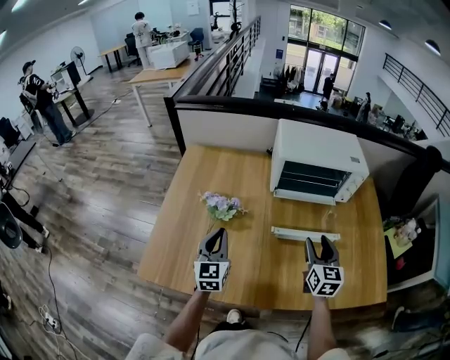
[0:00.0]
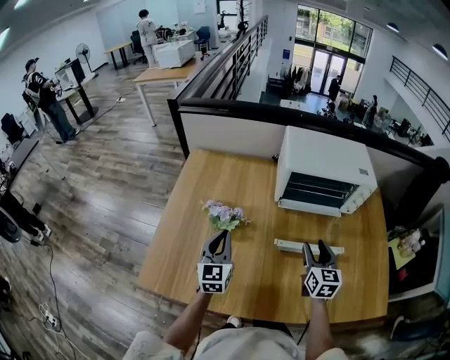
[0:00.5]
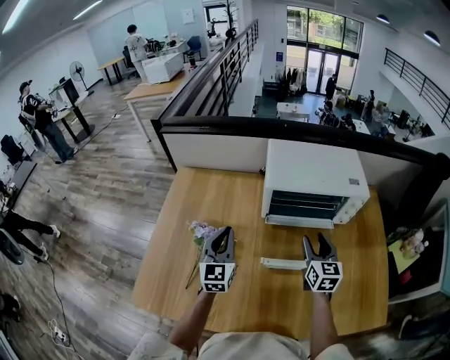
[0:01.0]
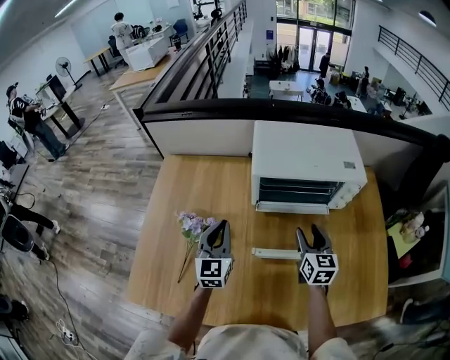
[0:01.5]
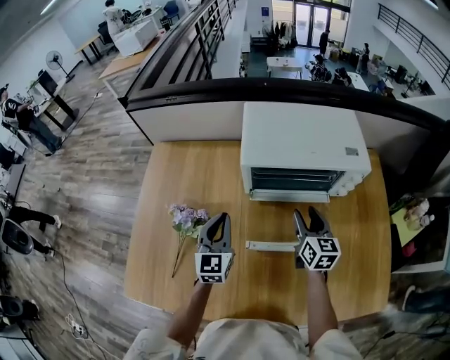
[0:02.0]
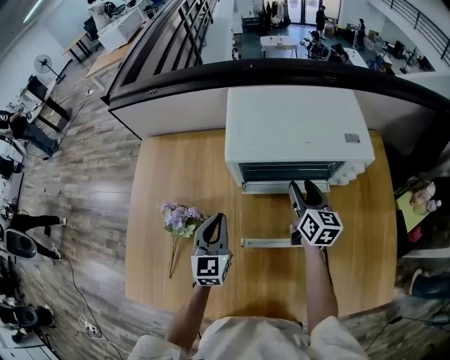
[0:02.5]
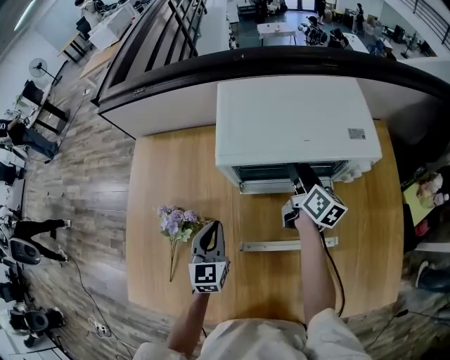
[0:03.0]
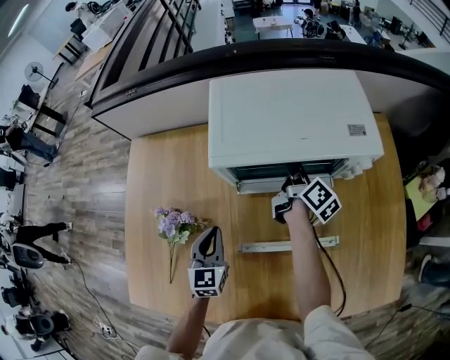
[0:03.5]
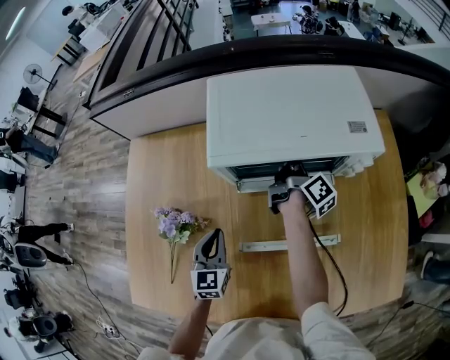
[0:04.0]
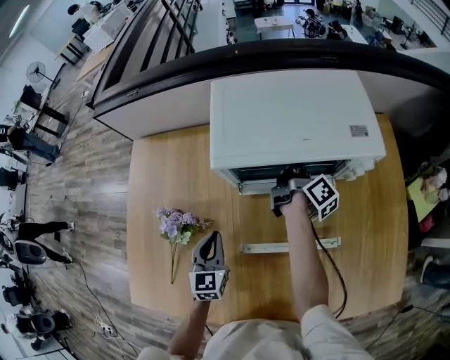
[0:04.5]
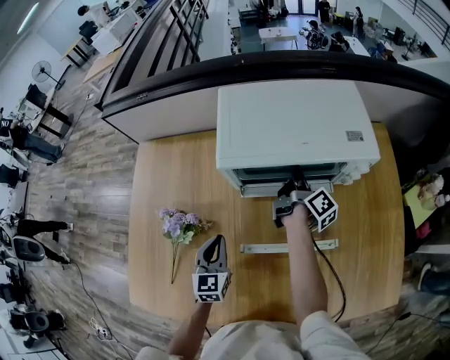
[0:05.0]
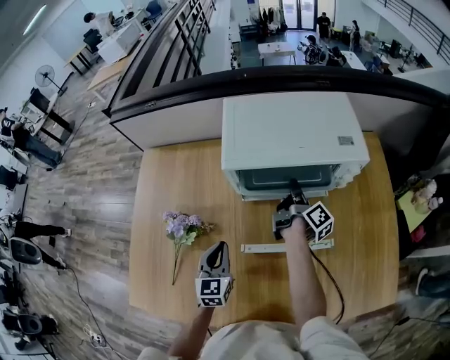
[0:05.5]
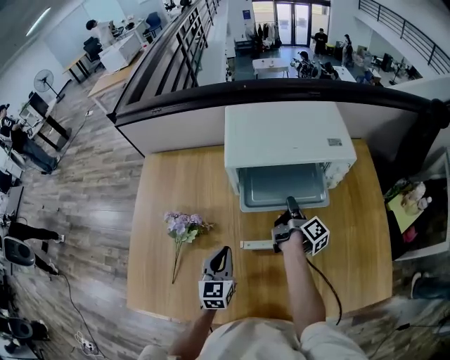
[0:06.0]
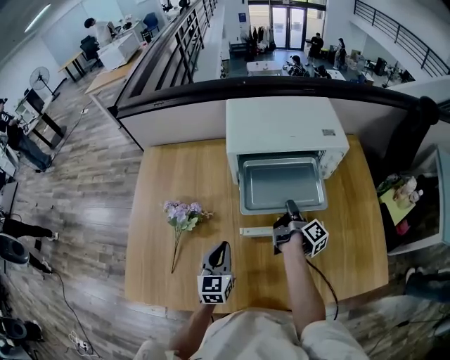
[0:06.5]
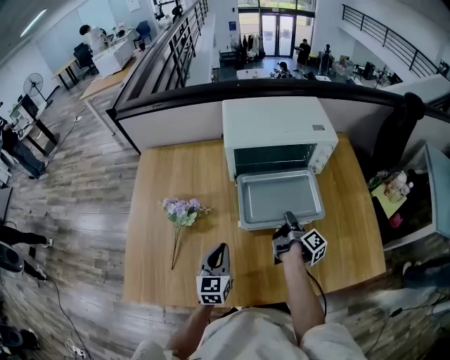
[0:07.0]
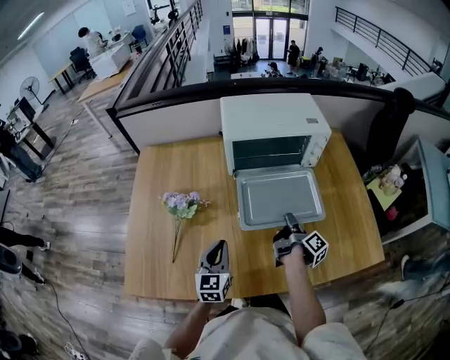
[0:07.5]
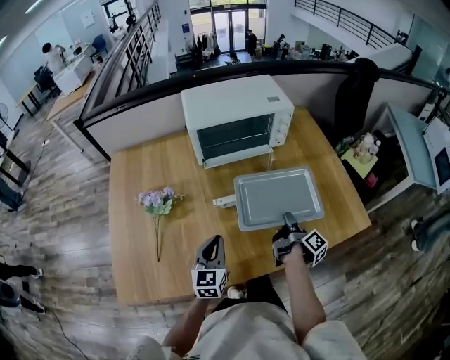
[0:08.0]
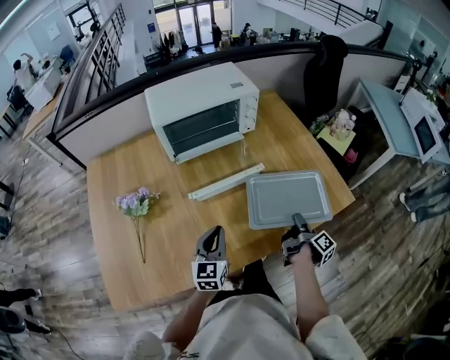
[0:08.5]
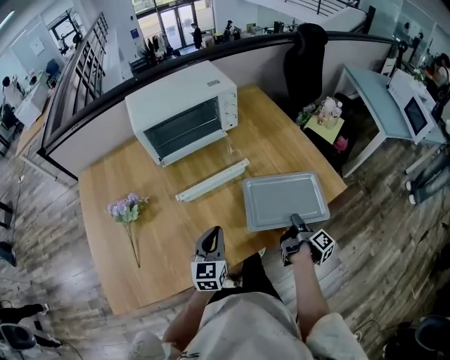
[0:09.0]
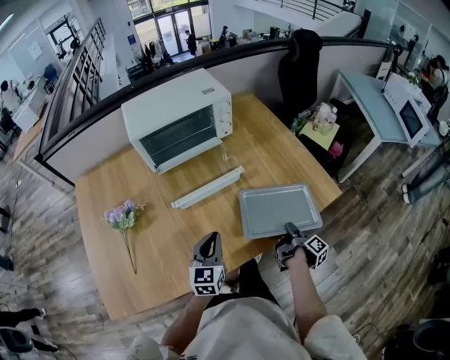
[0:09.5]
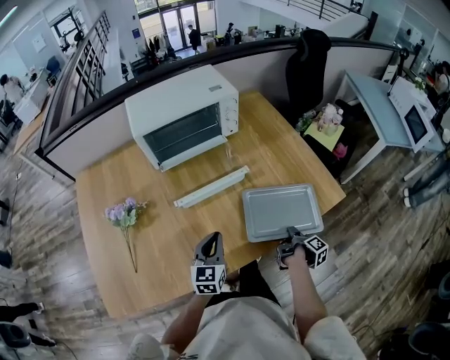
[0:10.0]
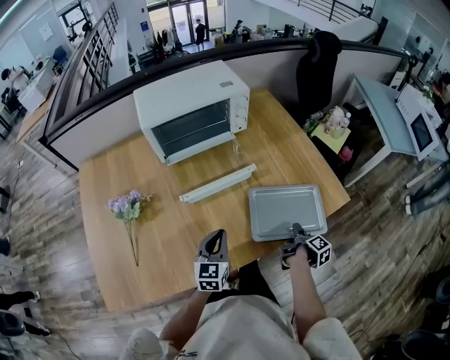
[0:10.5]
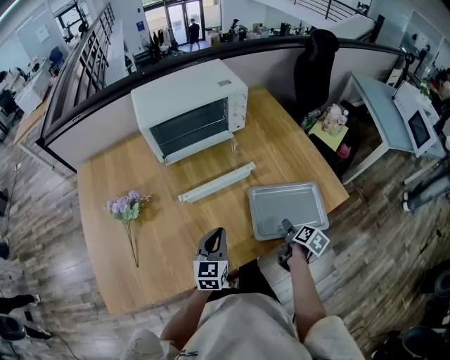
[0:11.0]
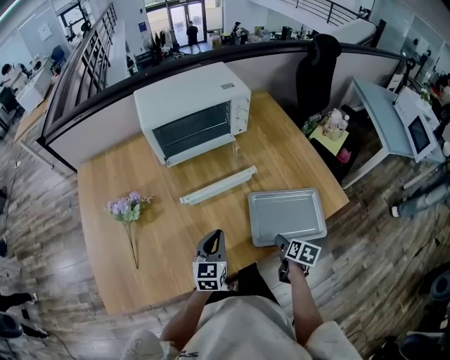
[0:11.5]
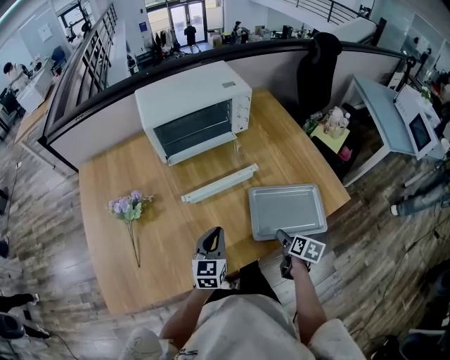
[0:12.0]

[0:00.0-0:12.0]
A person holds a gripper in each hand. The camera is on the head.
0:00.0 to 0:02.0: The left gripper goes some 20 cm forward and to the right. The right gripper heads forward, covering some 15 cm.
0:02.0 to 0:04.0: The right gripper travels forward by some 15 cm, and rotates around the line of its fingers by about 70 degrees, clockwise from behind. The left gripper moves downward, roughly 10 cm.
0:04.0 to 0:06.0: The left gripper goes about 5 cm backward. The right gripper travels backward by approximately 15 cm.
0:06.0 to 0:08.0: The left gripper goes some 10 cm backward. Meanwhile the right gripper shifts roughly 25 cm backward.
0:08.0 to 0:10.0: The right gripper travels to the right, downward and backward by some 20 cm, and rotates approximately 30 degrees; the left gripper is displaced to the right by approximately 10 cm.
0:10.0 to 0:12.0: The right gripper changes place by about 5 cm, twists approximately 60 degrees counterclockwise, seen from behind, and opens.

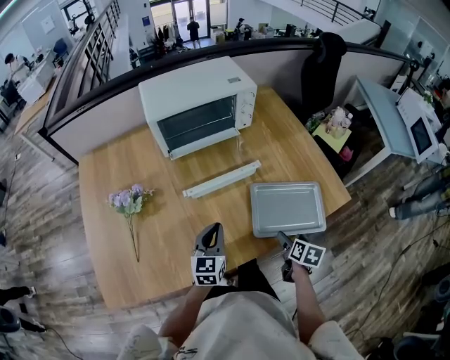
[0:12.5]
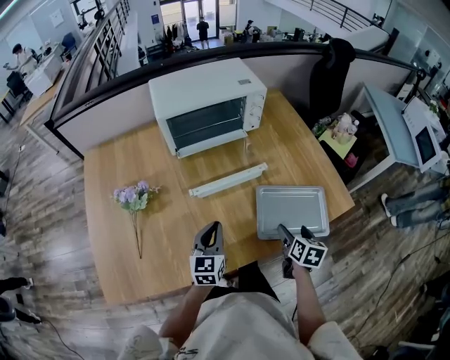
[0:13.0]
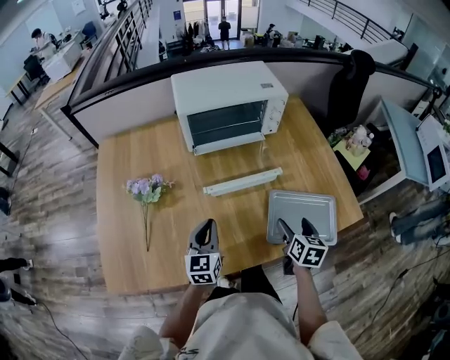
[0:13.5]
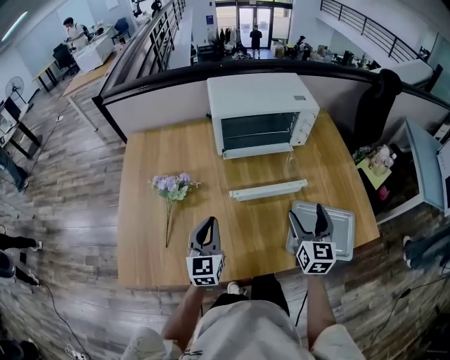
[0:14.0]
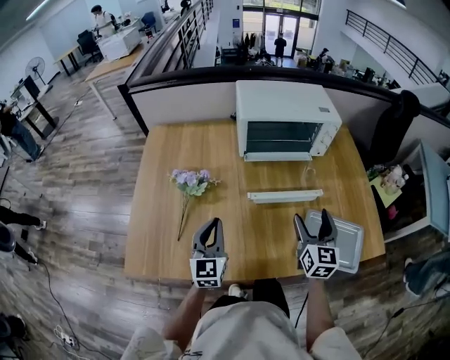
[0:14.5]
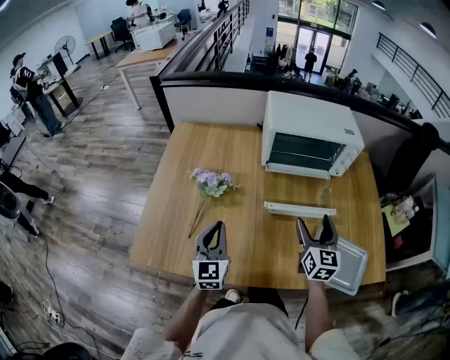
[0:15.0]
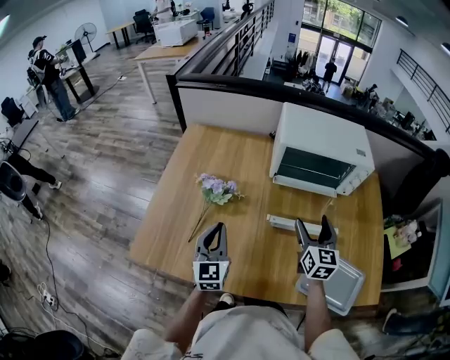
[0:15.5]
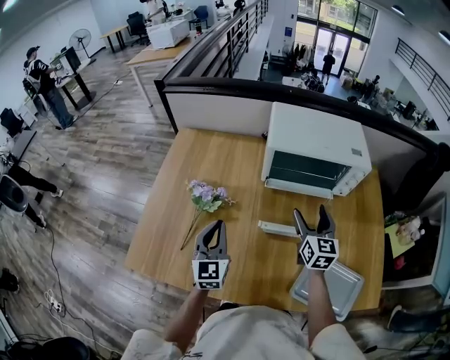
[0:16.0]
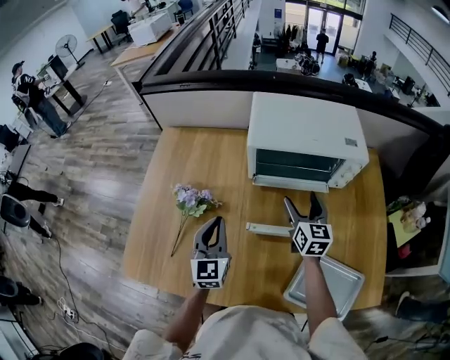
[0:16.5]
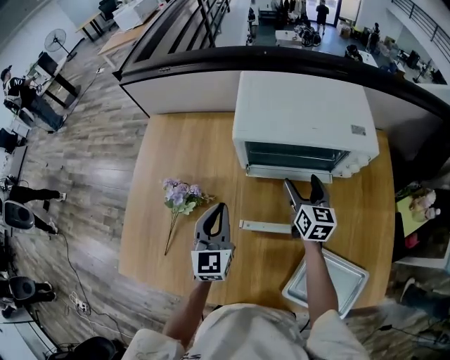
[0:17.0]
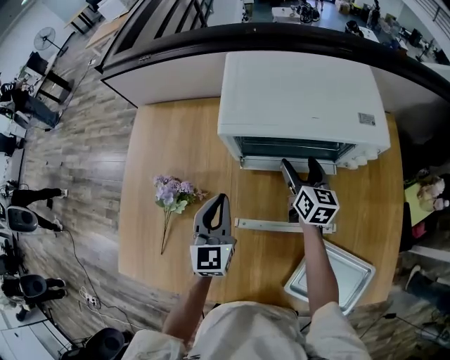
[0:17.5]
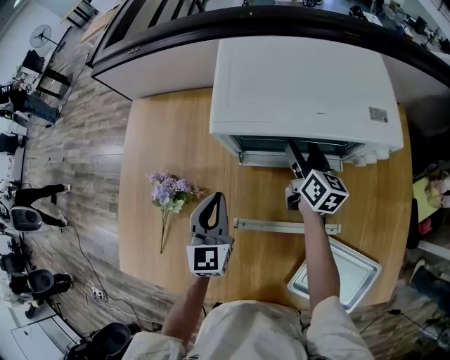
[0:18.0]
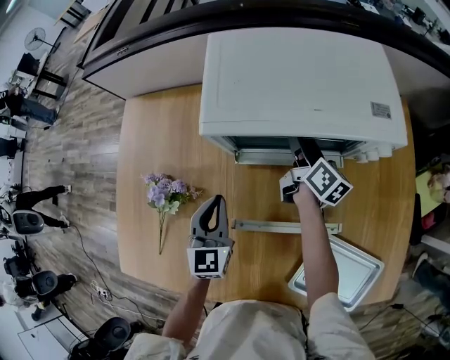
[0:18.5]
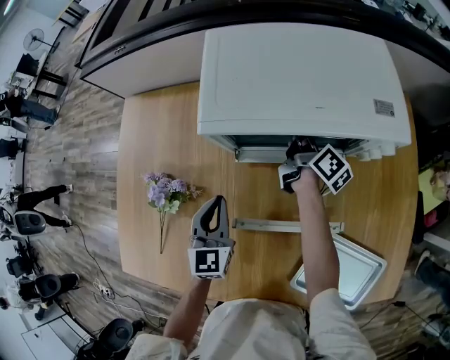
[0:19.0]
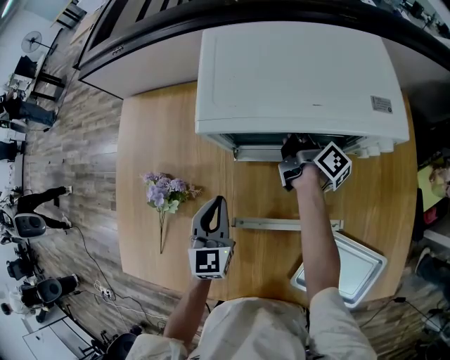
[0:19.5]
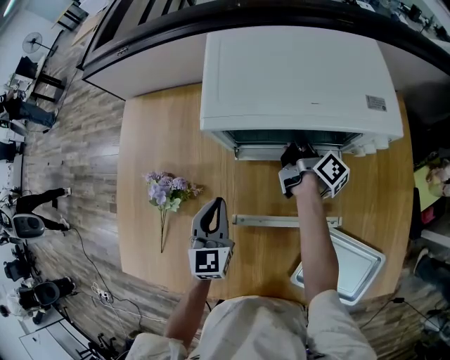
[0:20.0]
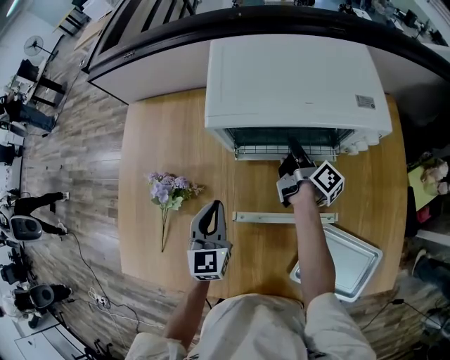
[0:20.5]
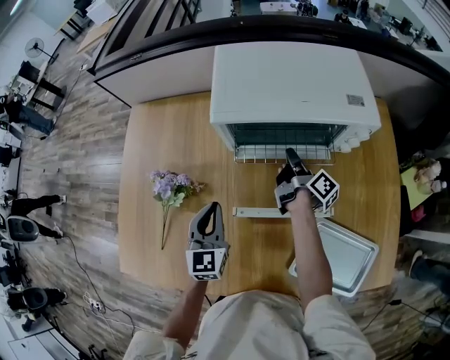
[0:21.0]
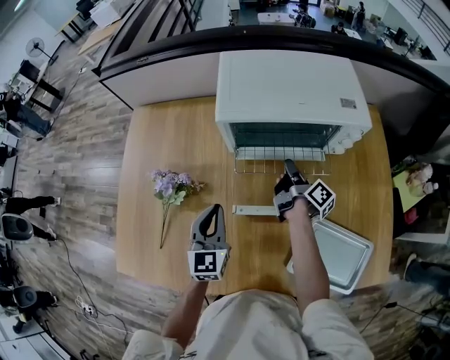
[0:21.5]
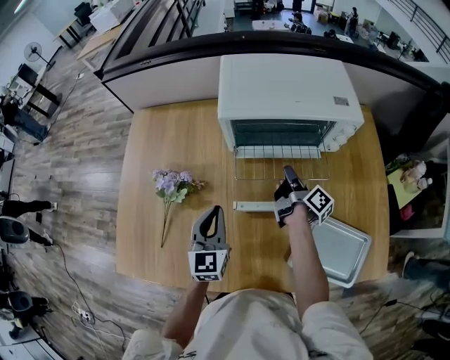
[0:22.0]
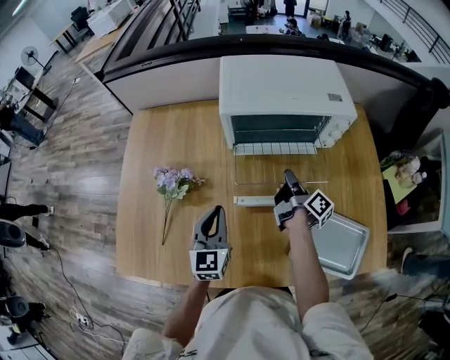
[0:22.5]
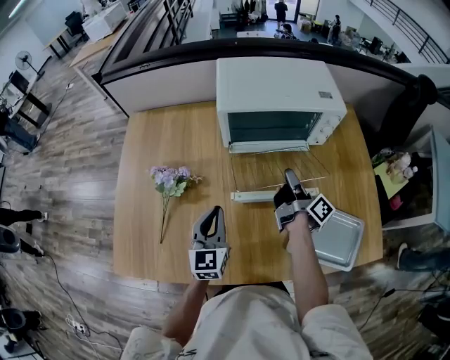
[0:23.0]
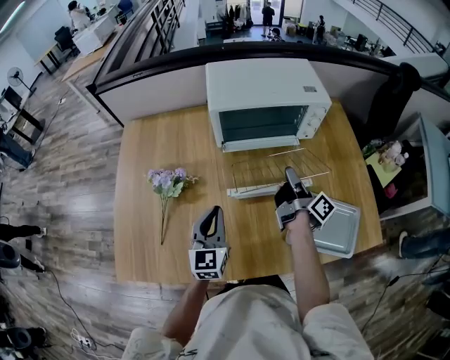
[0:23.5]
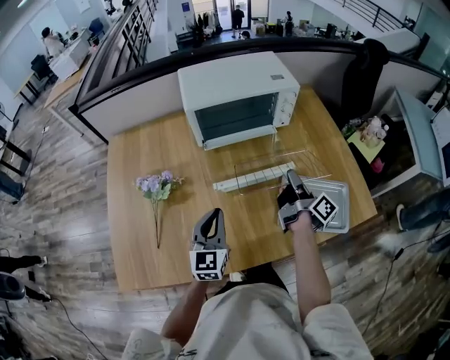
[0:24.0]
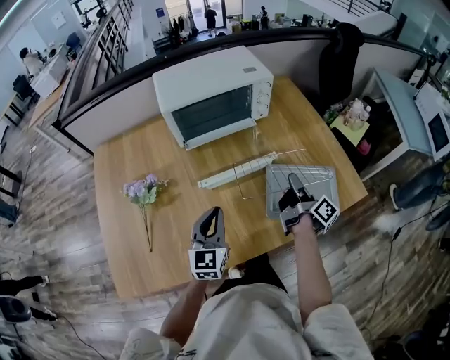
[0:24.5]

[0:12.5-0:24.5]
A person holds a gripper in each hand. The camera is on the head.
0:12.5 to 0:14.5: The left gripper travels to the left and upward by approximately 20 cm, and turns by roughly 30 degrees. The right gripper goes approximately 30 cm upward, to the left and forward, and tilts its fingers approximately 40 degrees upward.
0:14.5 to 0:16.5: The right gripper heads forward, covering approximately 20 cm, while the left gripper heads forward, covering approximately 10 cm.
0:16.5 to 0:18.5: The left gripper shifts about 15 cm forward, downward and to the right, while the right gripper heads forward and downward, covering approximately 15 cm, and rolls clockwise, seen from behind, by some 50 degrees.
0:18.5 to 0:20.5: The right gripper turns by some 30 degrees, and closes up.
0:20.5 to 0:22.5: The right gripper heads backward, covering roughly 15 cm. The left gripper goes about 5 cm backward.
0:22.5 to 0:24.5: The right gripper heads backward and to the right, covering roughly 25 cm, and turns by approximately 20 degrees. The left gripper is displaced backward and to the right by about 10 cm, and turns by roughly 20 degrees.

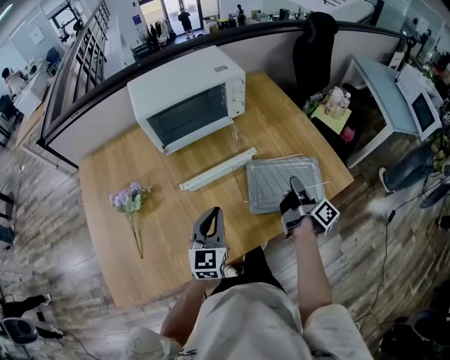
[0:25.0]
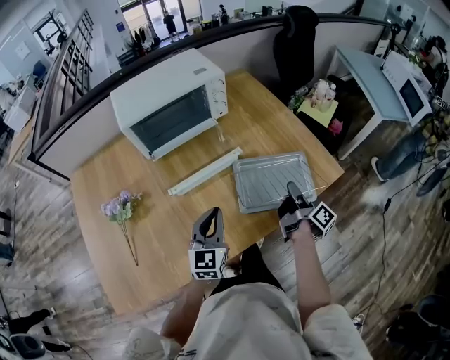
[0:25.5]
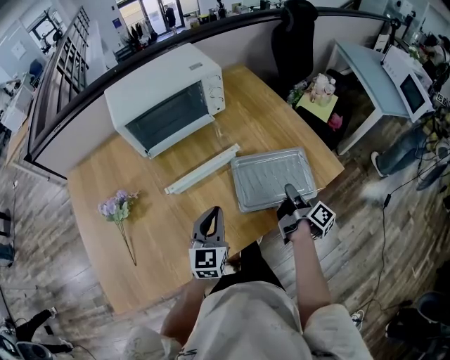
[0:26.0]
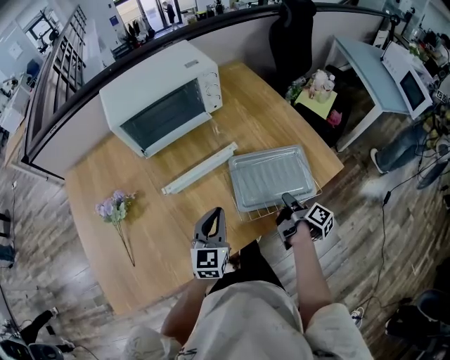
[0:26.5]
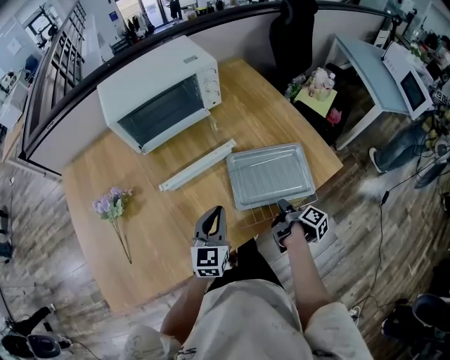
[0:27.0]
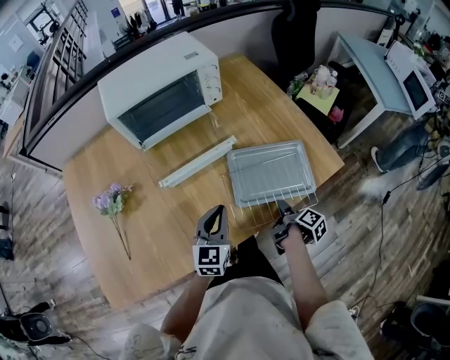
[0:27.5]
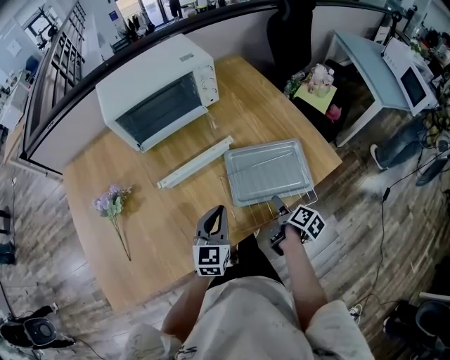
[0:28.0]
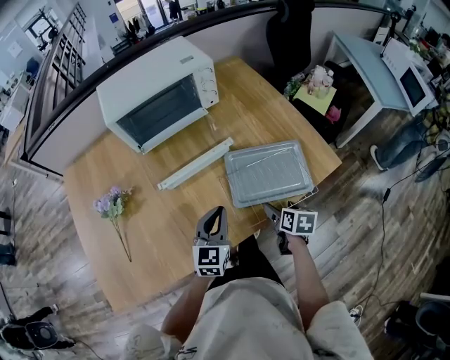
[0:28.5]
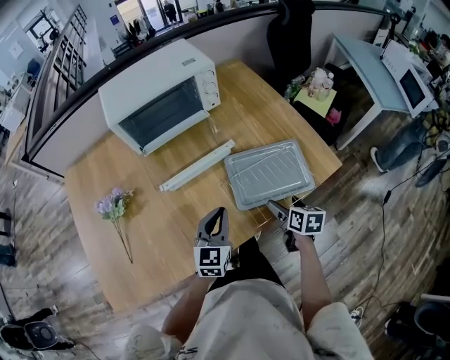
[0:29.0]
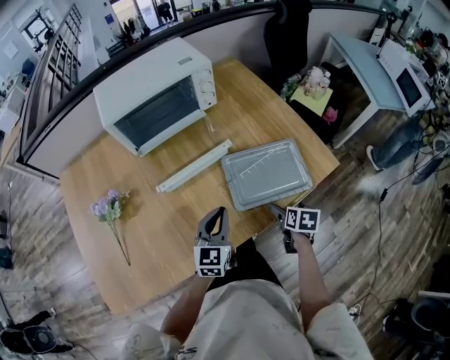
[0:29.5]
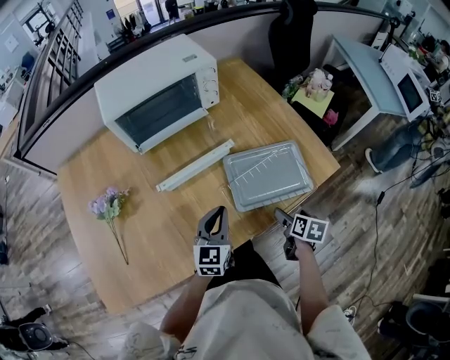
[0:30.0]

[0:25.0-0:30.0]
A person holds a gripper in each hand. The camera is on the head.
0:25.0 to 0:27.5: The right gripper moves downward and backward, approximately 20 cm, and tilts its fingers approximately 40 degrees downward. Meanwhile the left gripper travels to the right by approximately 5 cm.
0:27.5 to 0:30.0: The right gripper rotates around the line of its fingers by some 50 degrees, counterclockwise from behind, and opens.
